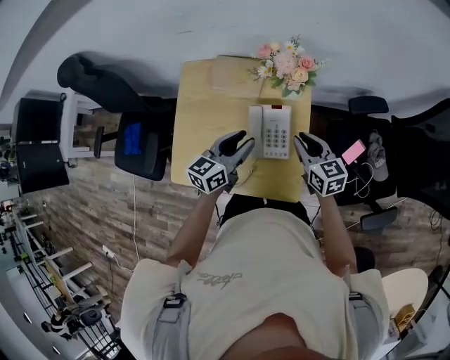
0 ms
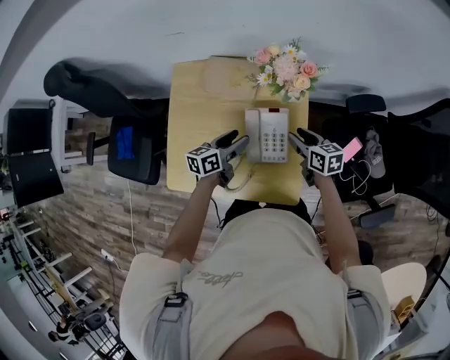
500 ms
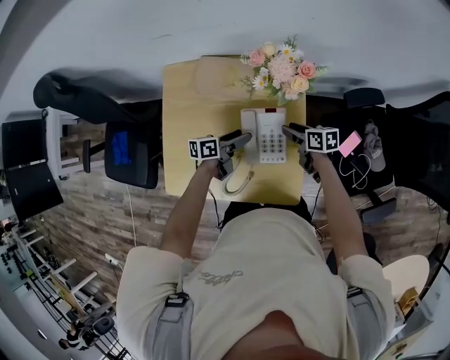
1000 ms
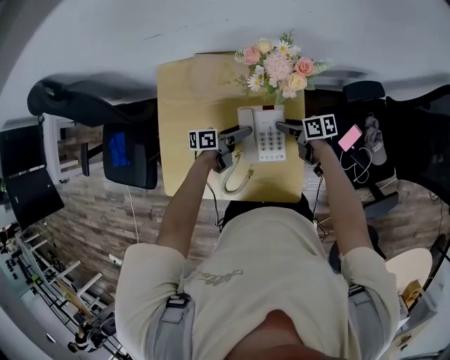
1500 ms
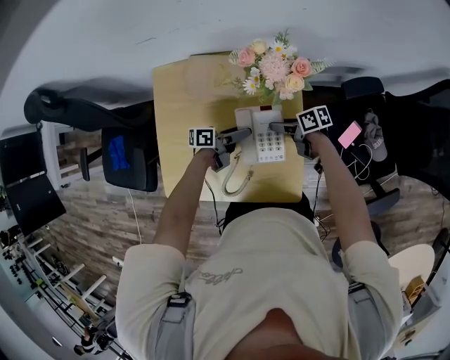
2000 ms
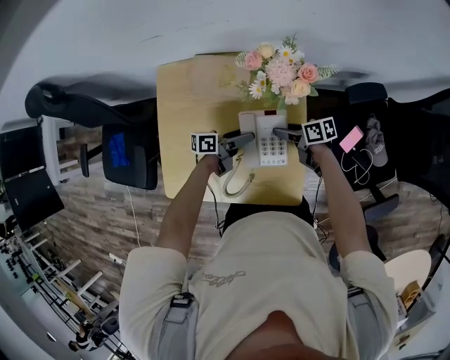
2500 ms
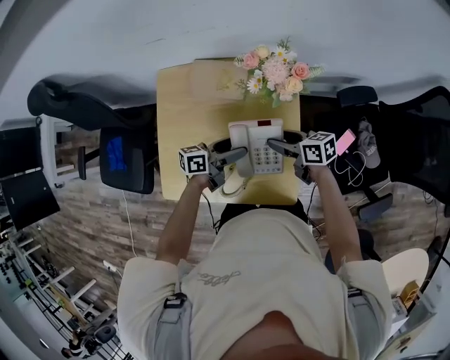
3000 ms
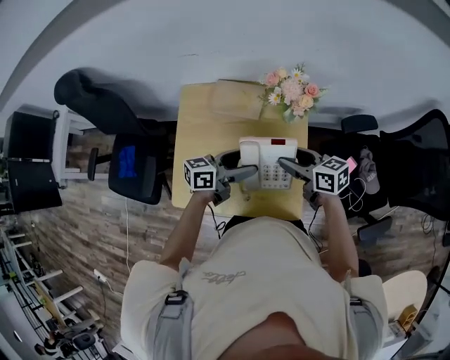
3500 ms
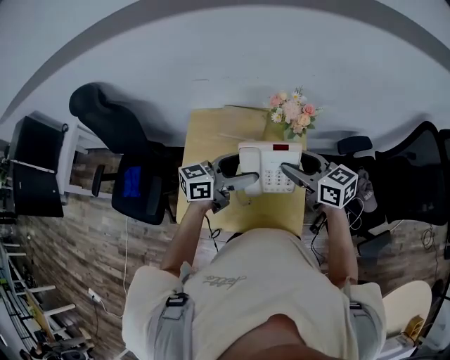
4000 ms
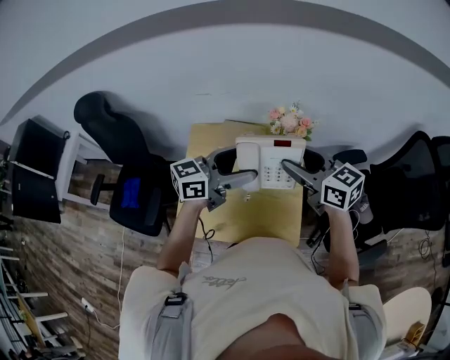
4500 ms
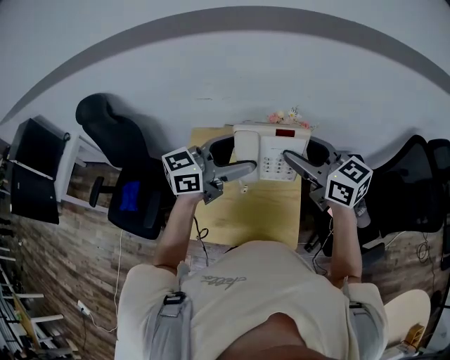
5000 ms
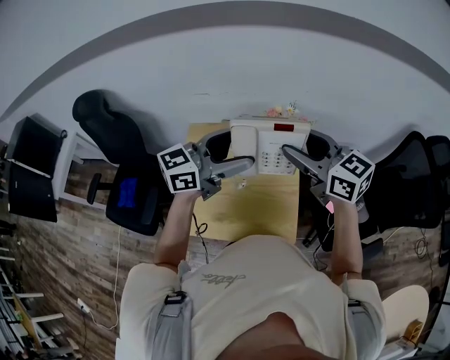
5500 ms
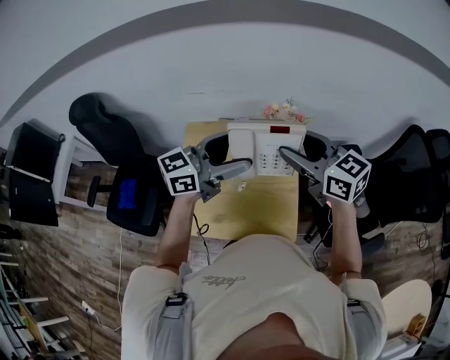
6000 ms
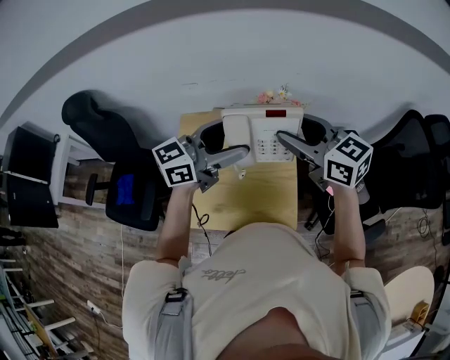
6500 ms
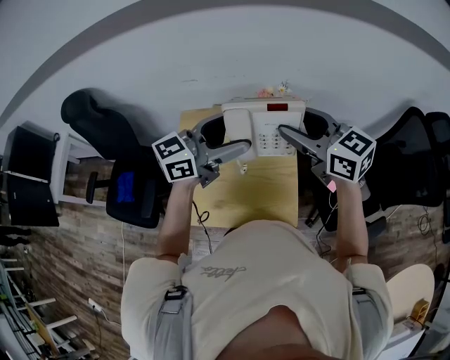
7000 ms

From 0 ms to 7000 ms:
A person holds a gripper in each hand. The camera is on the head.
From 0 ms to 2000 ms: The two grippers go approximately 20 cm downward. The right gripper changes its angle by some 50 degrees, and opens its fingers; the left gripper rotates around the line of its fingers by roughly 40 degrees, counterclockwise from behind, and opens.
From 2000 ms to 3500 ms: The grippers both shift upward by about 20 cm. The left gripper rotates some 30 degrees; the right gripper swivels about 30 degrees.
From 3500 ms to 5000 ms: Both grippers travel together upward, approximately 25 cm. The right gripper swivels approximately 30 degrees; the left gripper rotates roughly 30 degrees.
From 5000 ms to 7000 ms: Both grippers stay put.

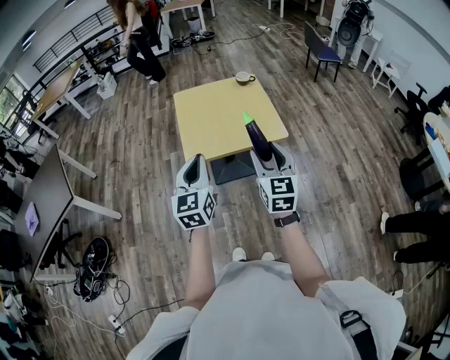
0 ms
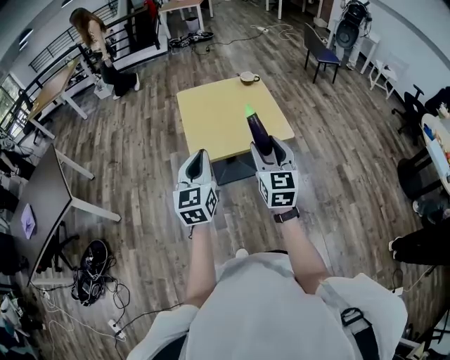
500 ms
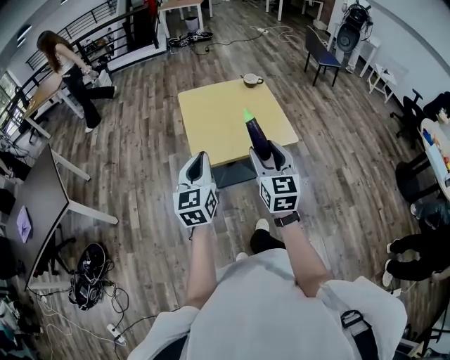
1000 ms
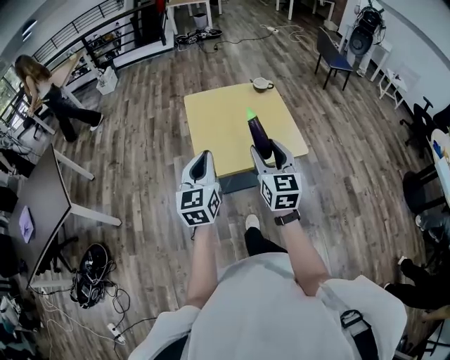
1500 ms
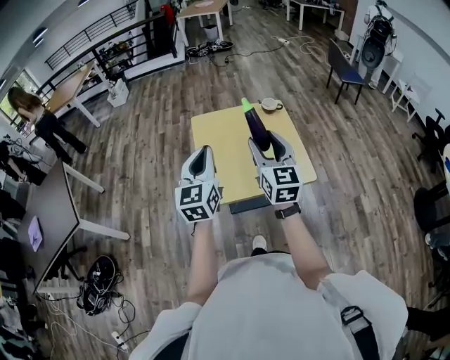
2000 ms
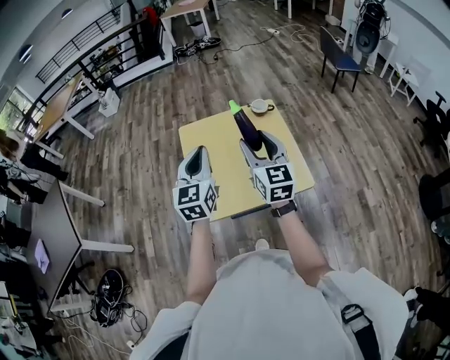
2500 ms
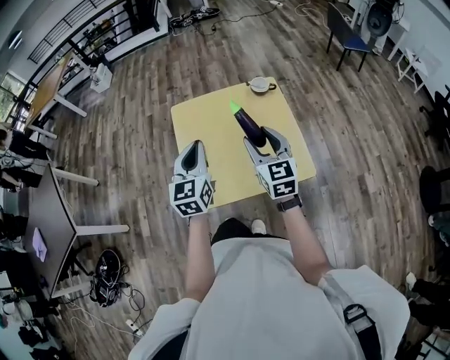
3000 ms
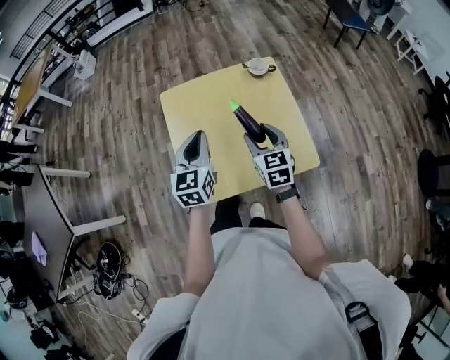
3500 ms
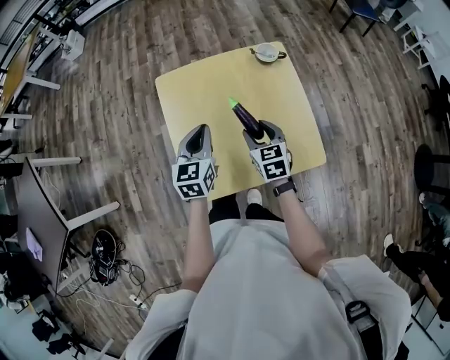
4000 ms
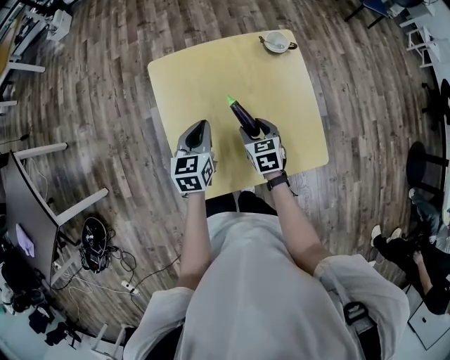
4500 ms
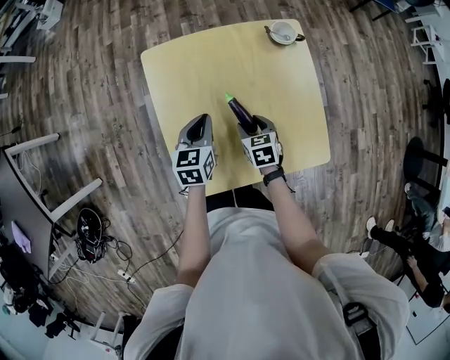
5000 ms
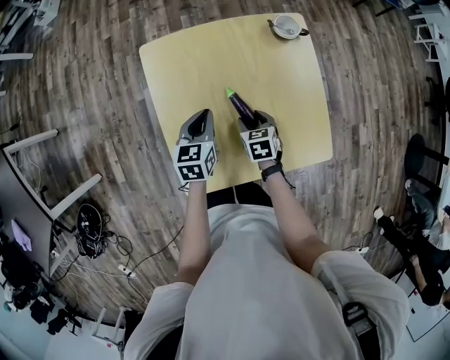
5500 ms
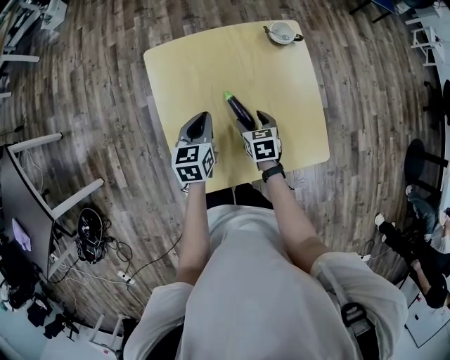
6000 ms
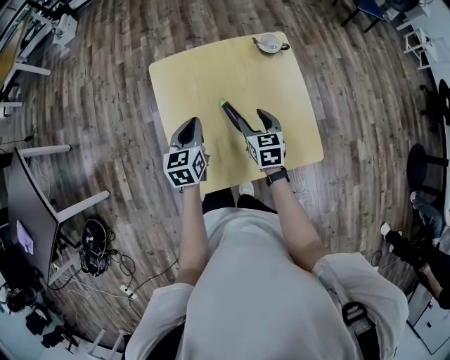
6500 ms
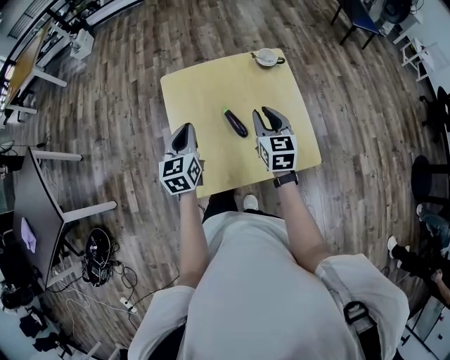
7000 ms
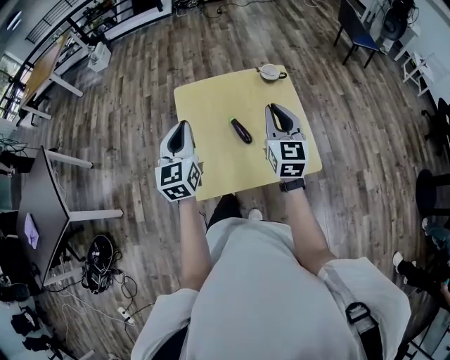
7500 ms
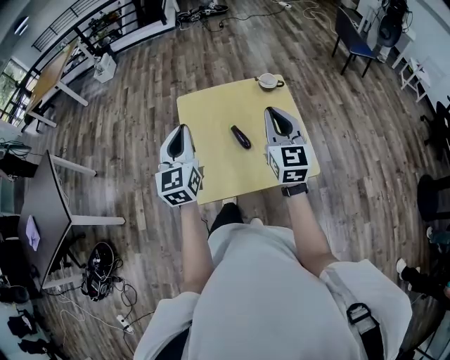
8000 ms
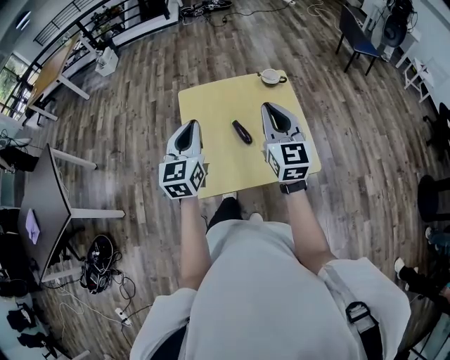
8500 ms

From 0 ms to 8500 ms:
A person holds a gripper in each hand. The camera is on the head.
From 0 ms to 2000 ms: Both grippers move forward, approximately 25 cm.
From 2000 ms to 4000 ms: The left gripper moves forward and downward, approximately 30 cm, and turns by some 20 degrees, while the right gripper moves downward and forward, roughly 35 cm, and angles its fingers downward, by about 40 degrees.
From 4000 ms to 6500 ms: The right gripper travels downward and back again, approximately 15 cm each way; the left gripper travels downward by about 5 cm.
From 6500 ms to 8500 ms: The left gripper goes some 25 cm upward and backward, and turns by about 30 degrees, while the right gripper goes some 30 cm upward, angles its fingers upward, by approximately 40 degrees, and closes up.

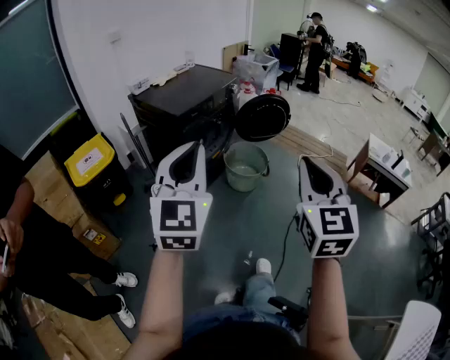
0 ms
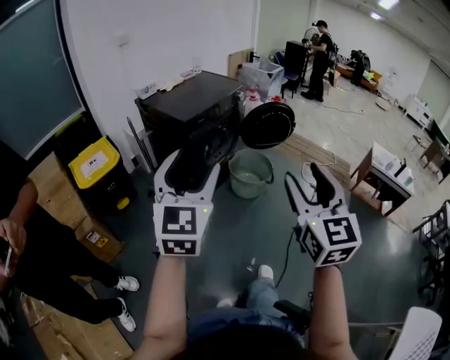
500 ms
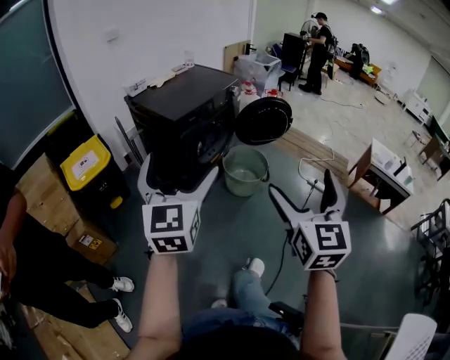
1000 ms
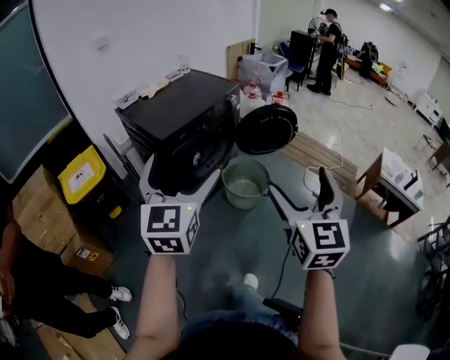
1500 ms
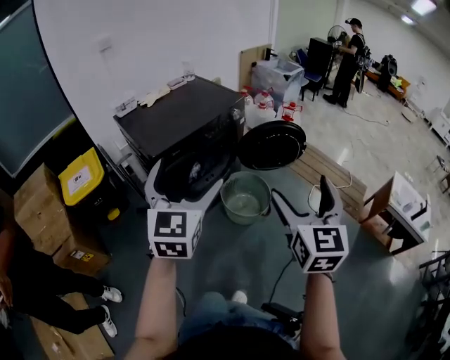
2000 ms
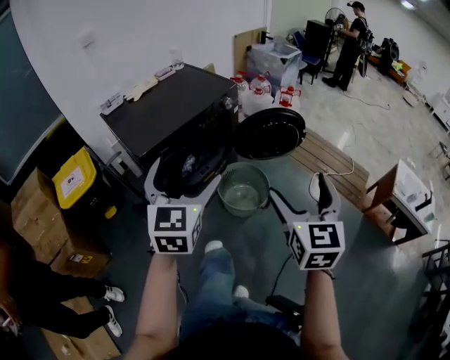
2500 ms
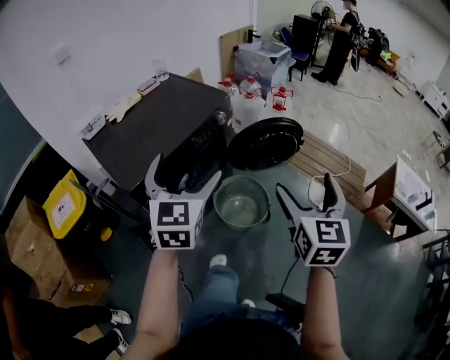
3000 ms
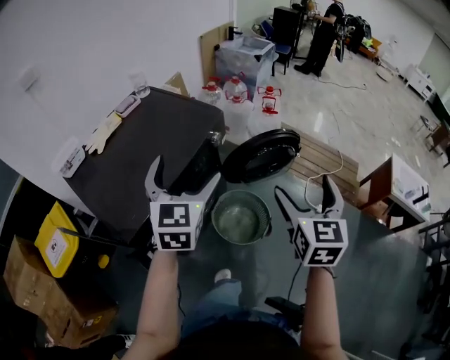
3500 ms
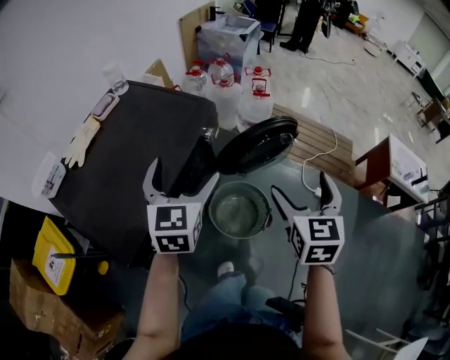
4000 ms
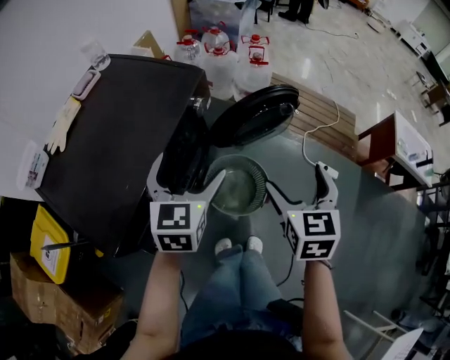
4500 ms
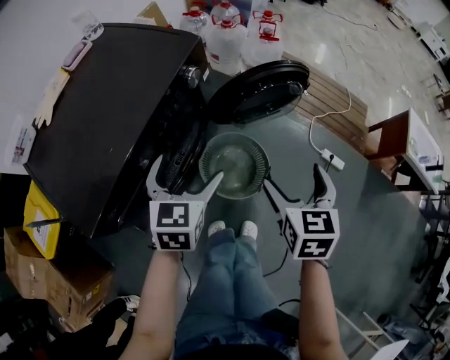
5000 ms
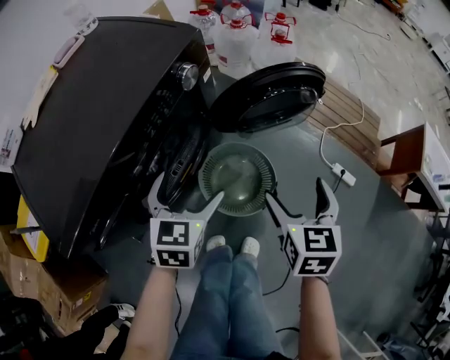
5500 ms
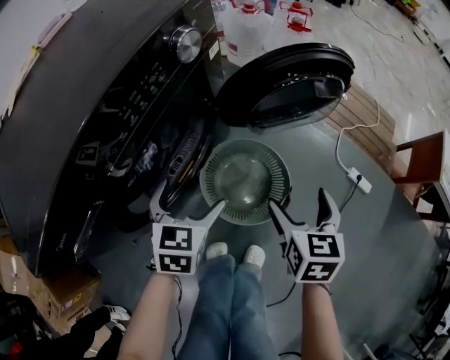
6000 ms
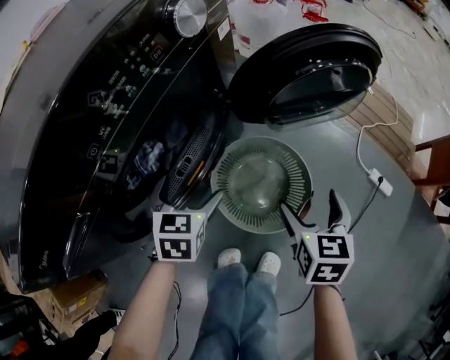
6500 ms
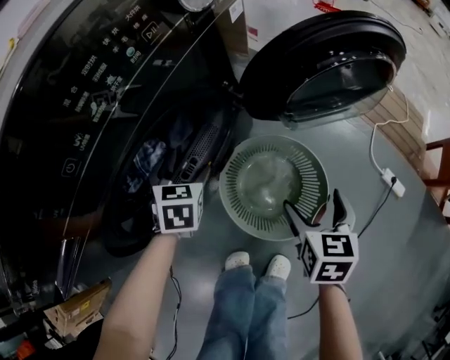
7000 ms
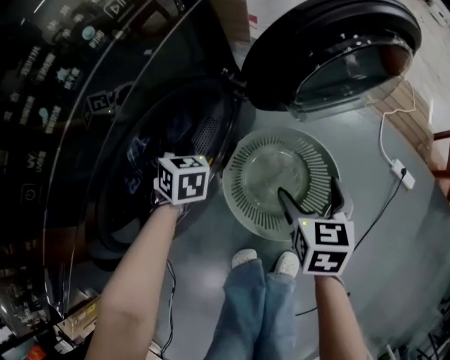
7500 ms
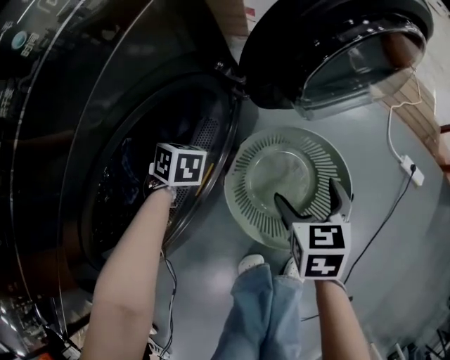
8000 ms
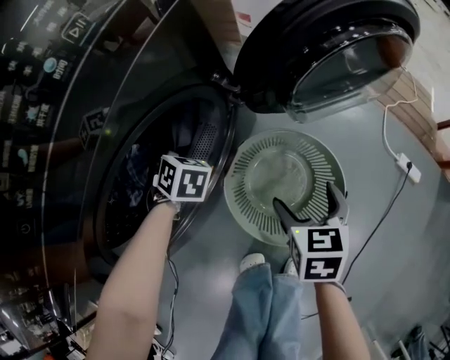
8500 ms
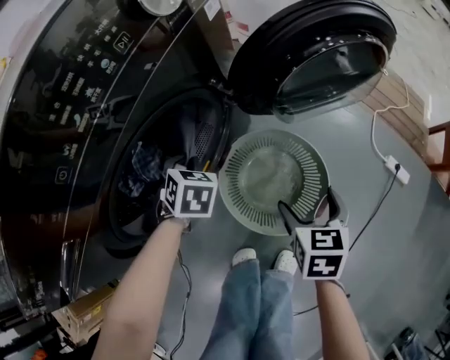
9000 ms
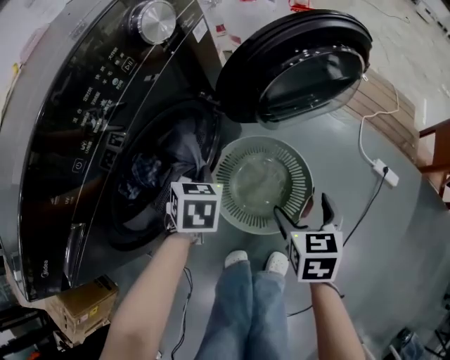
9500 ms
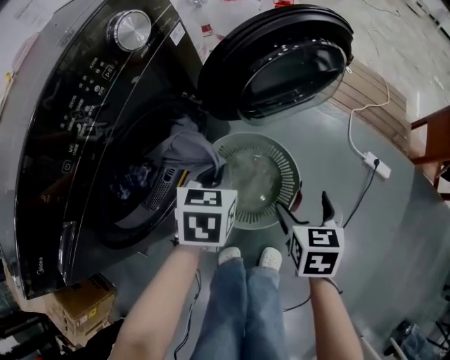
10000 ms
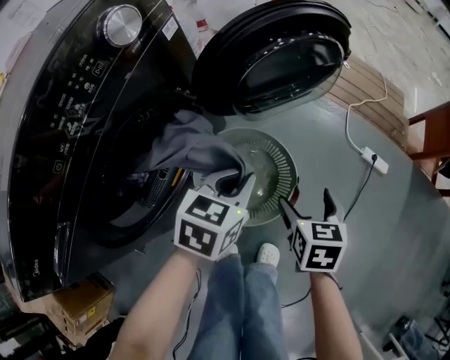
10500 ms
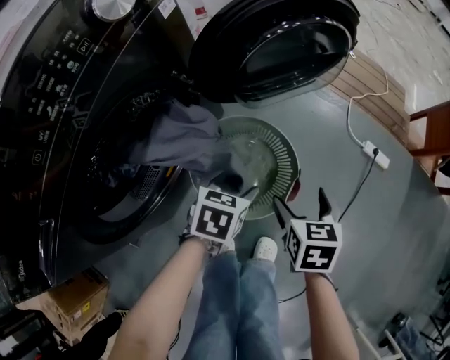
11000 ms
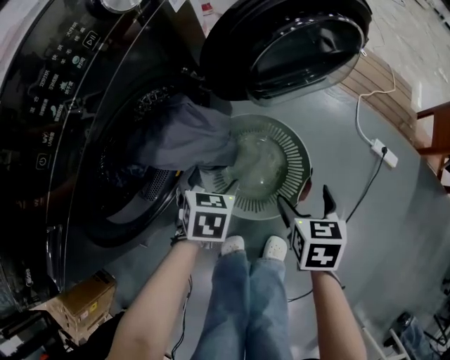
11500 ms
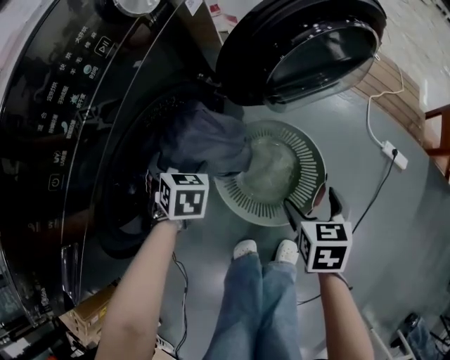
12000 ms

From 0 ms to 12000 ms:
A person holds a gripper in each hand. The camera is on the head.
From 0 ms to 2000 ms: The grippers both shift forward by about 30 cm. The right gripper opens. Meanwhile the left gripper opens its fingers.
From 2000 ms to 4000 ms: Both grippers move forward, some 40 cm. The right gripper rotates some 30 degrees. The left gripper turns by approximately 20 degrees.
From 4000 ms to 6000 ms: The grippers both shift downward by about 40 cm. The right gripper swivels roughly 20 degrees. The left gripper turns by about 30 degrees.
From 6000 ms to 8000 ms: The right gripper shifts roughly 25 cm downward. The left gripper ends up roughly 35 cm from where it was, swivels some 40 degrees, and closes its fingers.
From 8000 ms to 10000 ms: The right gripper shifts by roughly 15 cm. Meanwhile the left gripper ends up about 35 cm from where it was, changes its angle by some 40 degrees, and closes.
From 10000 ms to 12000 ms: The right gripper moves downward, roughly 5 cm, while the left gripper changes place by roughly 20 cm, swivels about 30 degrees, and opens its fingers.
